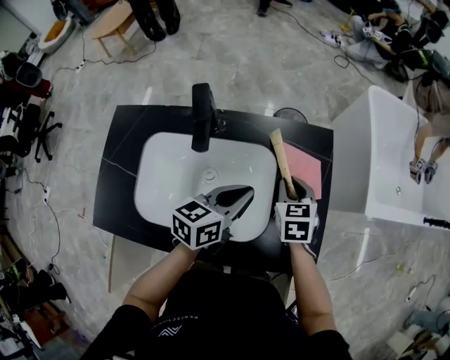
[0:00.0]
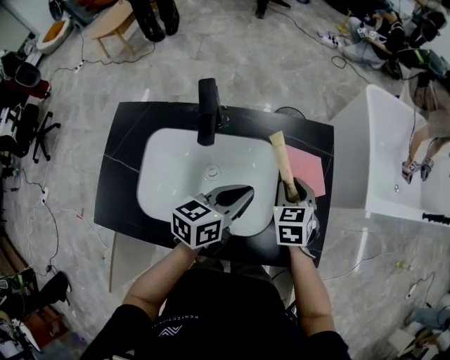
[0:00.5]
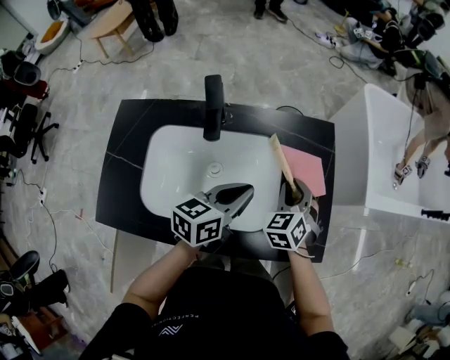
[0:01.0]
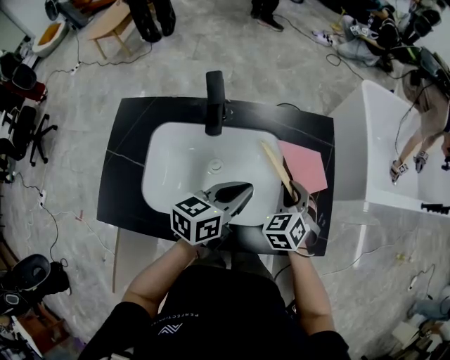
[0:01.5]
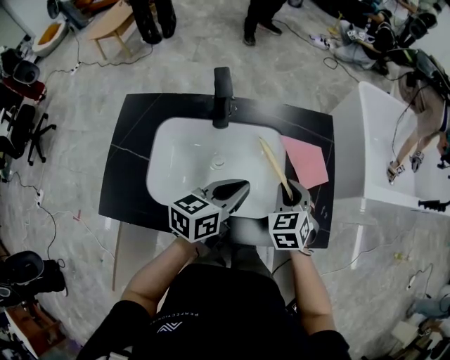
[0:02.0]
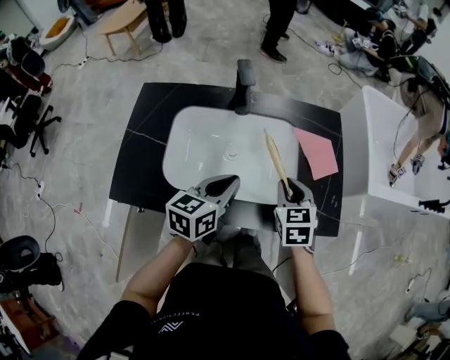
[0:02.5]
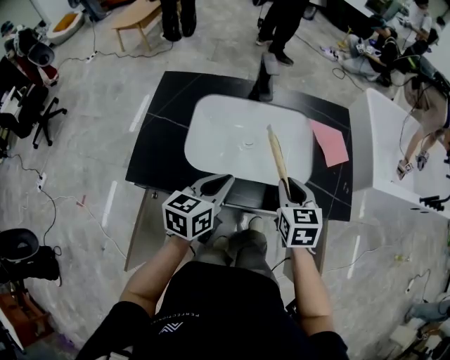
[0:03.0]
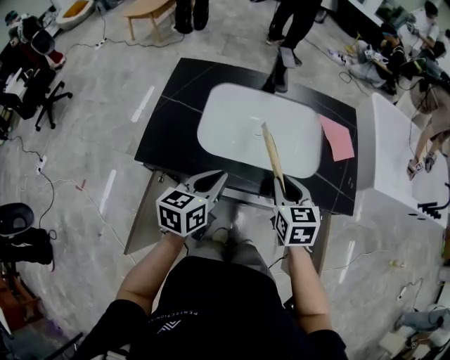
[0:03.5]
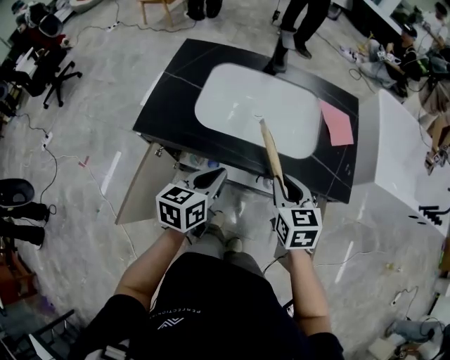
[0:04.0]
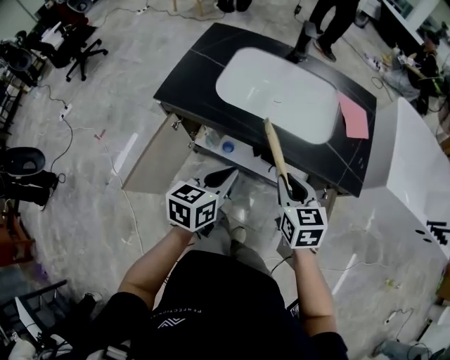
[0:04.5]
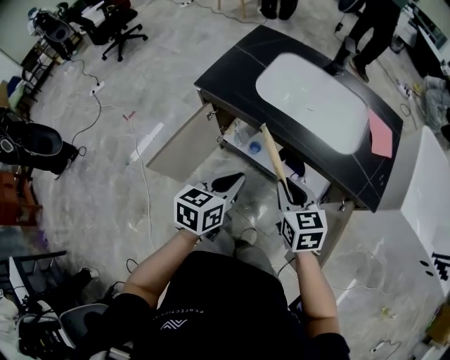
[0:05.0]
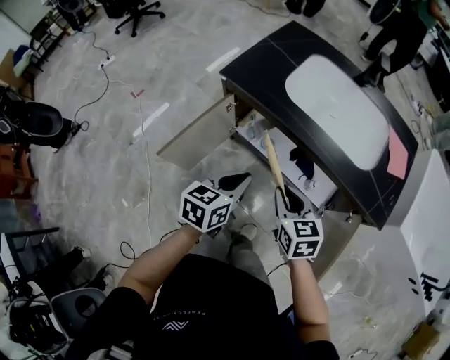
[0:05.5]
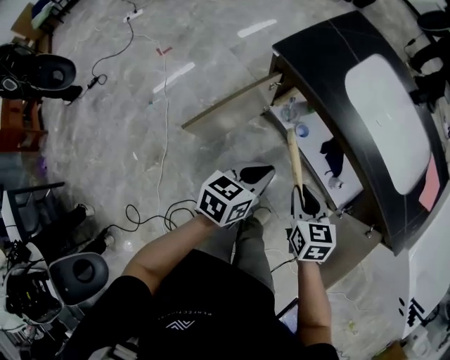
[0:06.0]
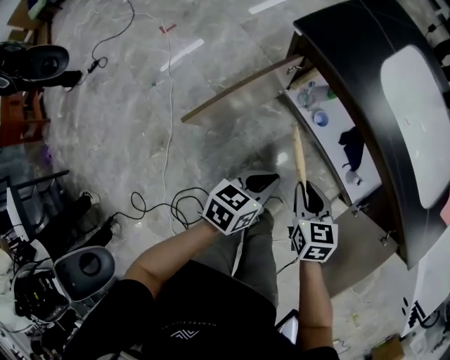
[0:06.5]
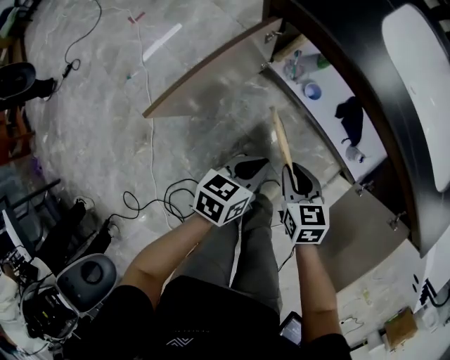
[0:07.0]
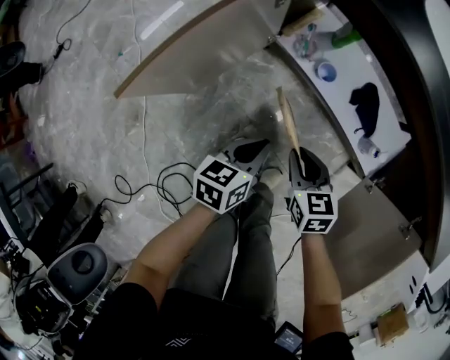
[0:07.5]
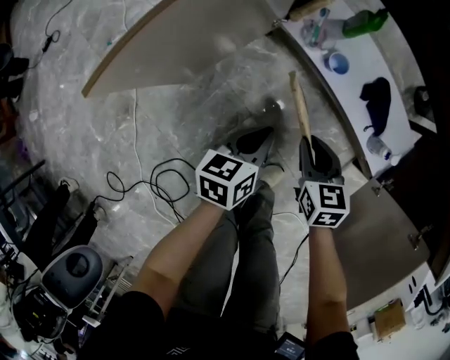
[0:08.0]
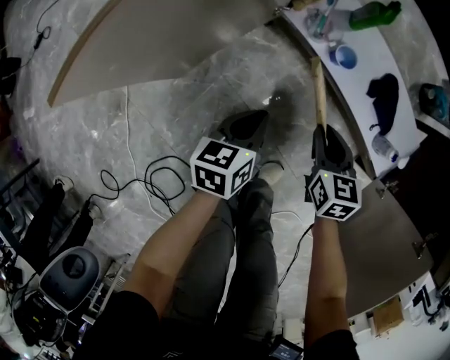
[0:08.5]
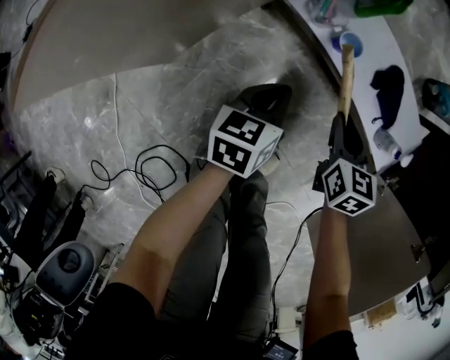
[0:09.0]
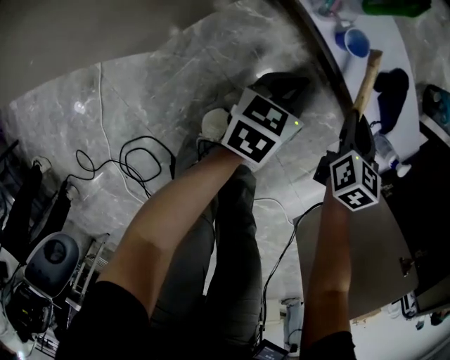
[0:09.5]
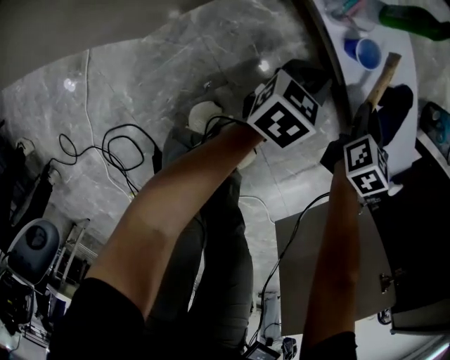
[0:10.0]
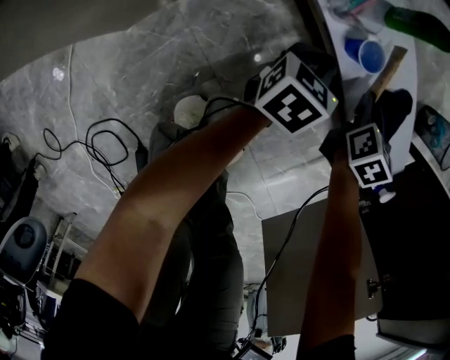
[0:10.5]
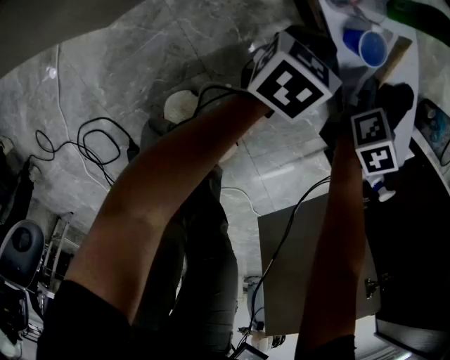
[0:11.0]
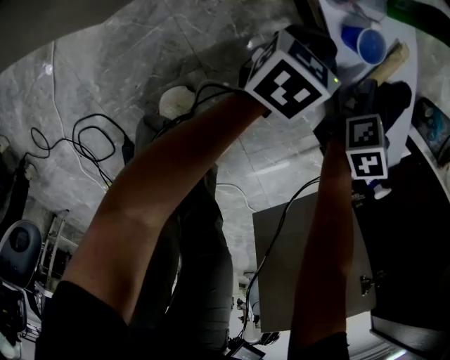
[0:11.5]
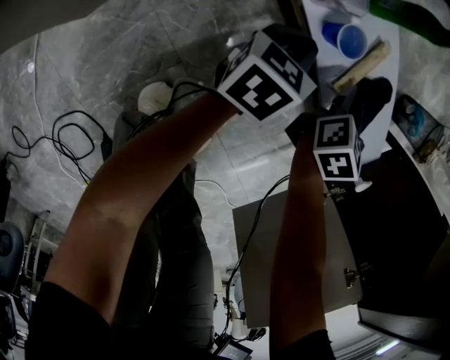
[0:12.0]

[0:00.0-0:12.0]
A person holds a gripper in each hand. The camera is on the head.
0:00.0 to 0:02.0: The two grippers go about 10 cm backward.
0:02.0 to 0:04.0: The right gripper moves backward, about 20 cm, and swivels approximately 30 degrees, while the left gripper heads backward and to the left, covering roughly 25 cm, and changes its angle by approximately 20 degrees.
0:04.0 to 0:06.0: The left gripper ends up about 20 cm from where it was. The right gripper changes place by some 25 cm, and rotates approximately 30 degrees.
0:06.0 to 0:08.0: Both grippers travel together downward, about 30 cm.
0:08.0 to 0:10.0: Both grippers move forward, downward and to the right, roughly 25 cm. The right gripper changes its angle by about 30 degrees.
0:10.0 to 0:12.0: The right gripper opens, then closes again, while the left gripper goes about 5 cm forward.

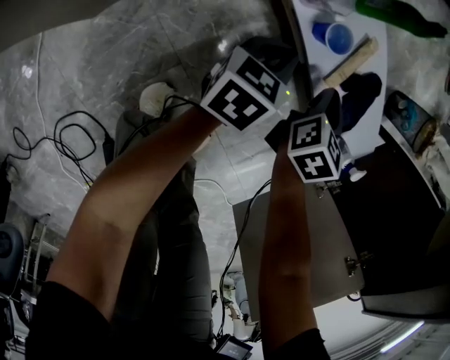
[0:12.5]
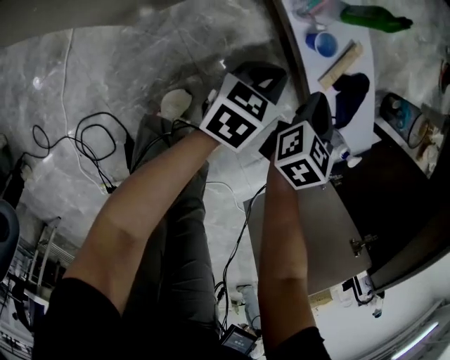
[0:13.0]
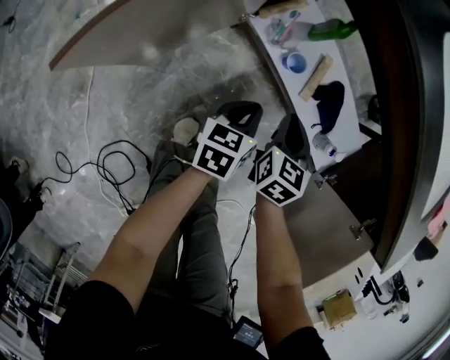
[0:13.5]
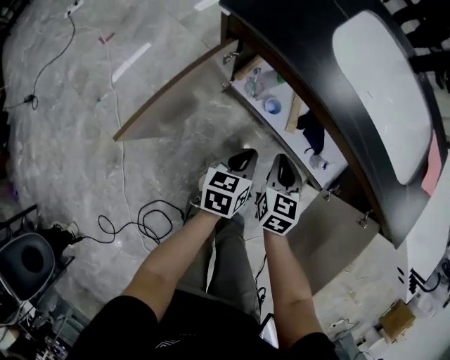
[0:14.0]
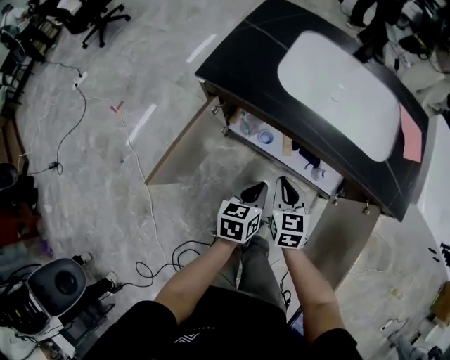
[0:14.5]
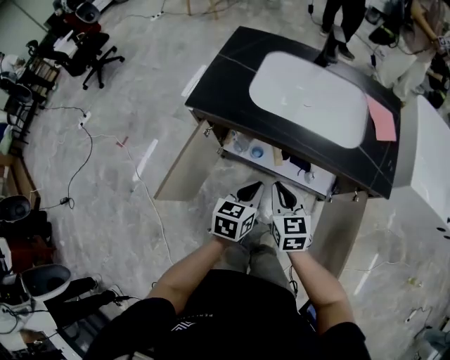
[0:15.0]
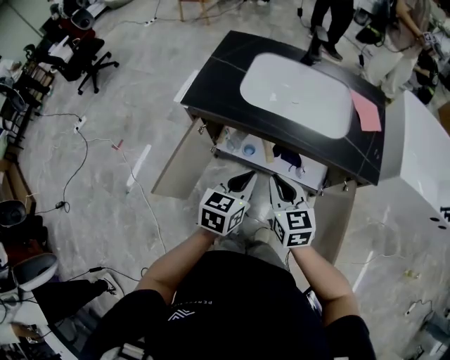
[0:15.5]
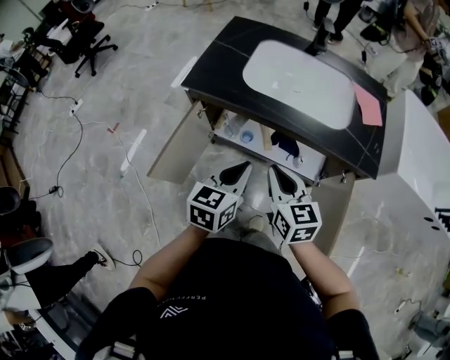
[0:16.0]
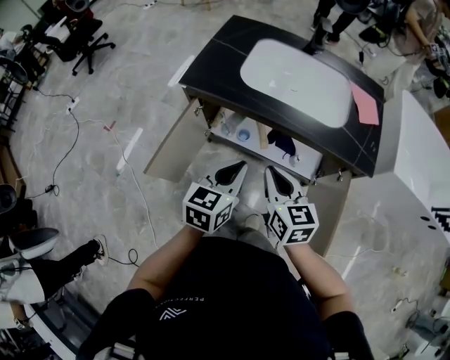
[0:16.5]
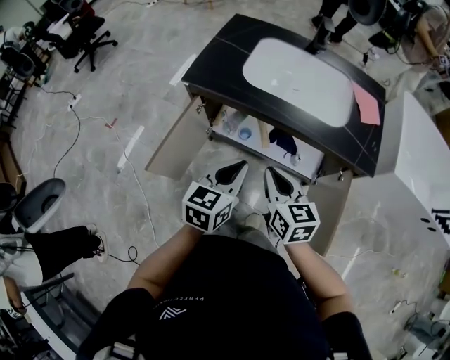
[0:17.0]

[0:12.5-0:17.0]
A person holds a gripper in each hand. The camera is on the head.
0:12.5 to 0:14.5: The grippers both shift upward by some 35 cm.
0:14.5 to 0:17.0: The right gripper is displaced upward and backward by some 20 cm. Meanwhile the left gripper goes about 20 cm upward, and swivels roughly 20 degrees.

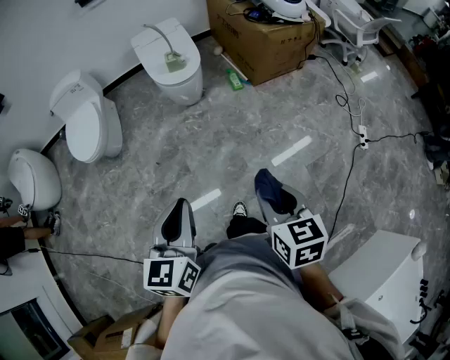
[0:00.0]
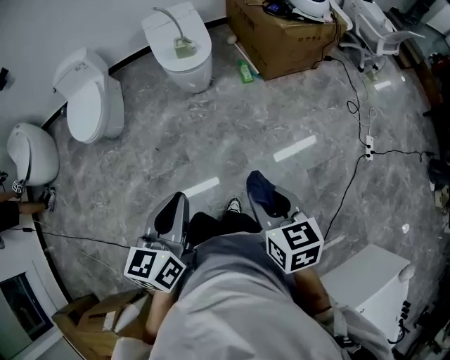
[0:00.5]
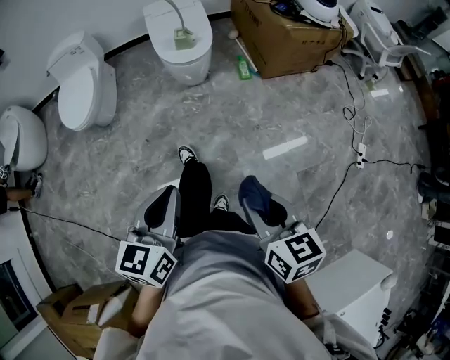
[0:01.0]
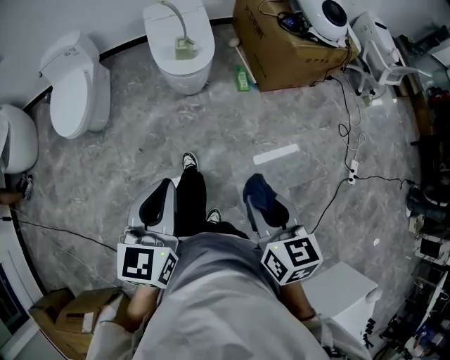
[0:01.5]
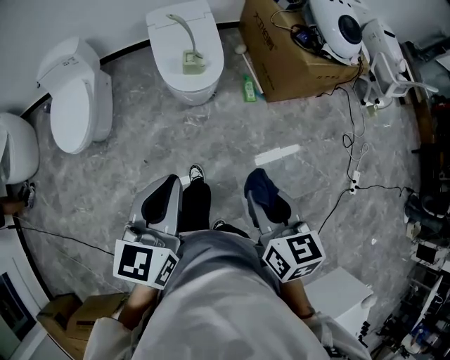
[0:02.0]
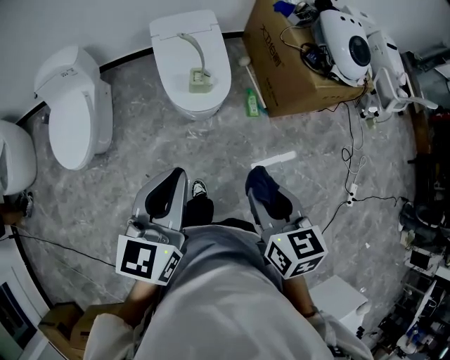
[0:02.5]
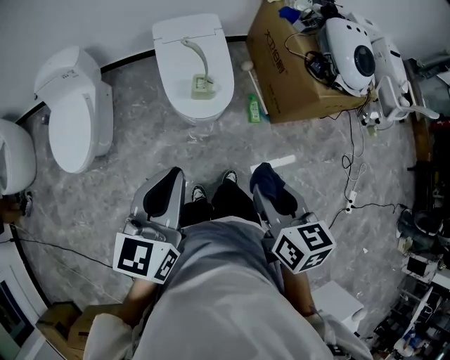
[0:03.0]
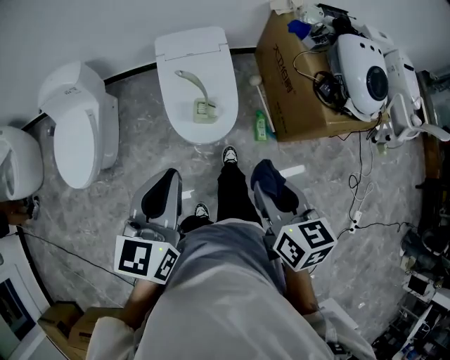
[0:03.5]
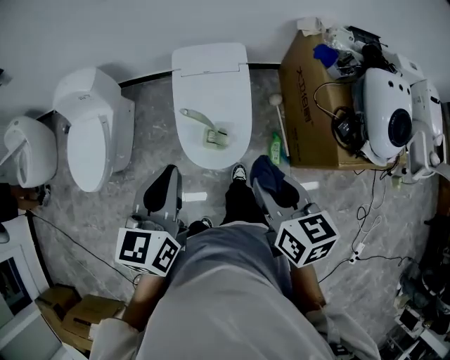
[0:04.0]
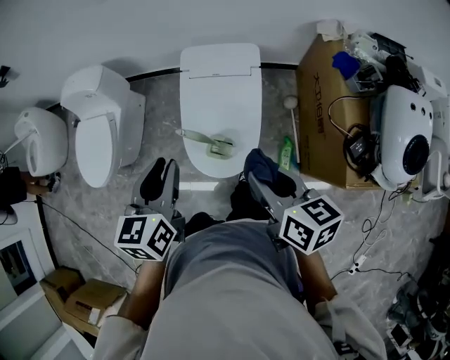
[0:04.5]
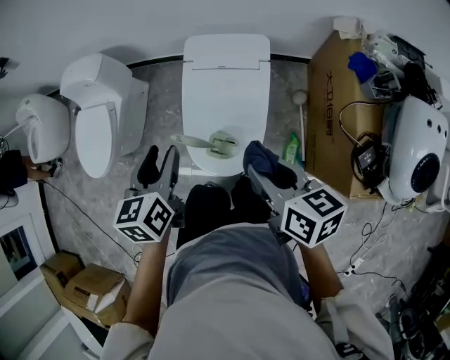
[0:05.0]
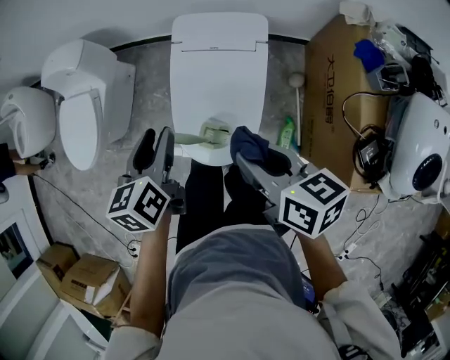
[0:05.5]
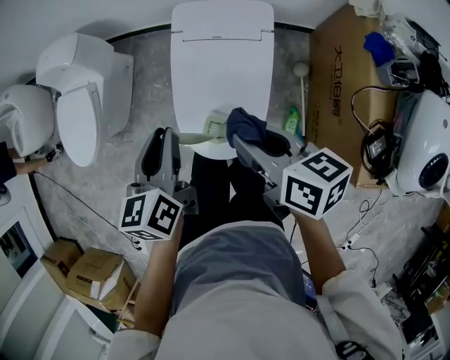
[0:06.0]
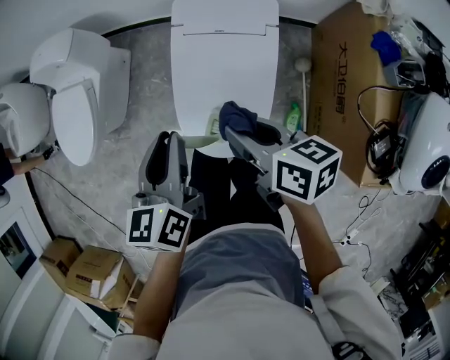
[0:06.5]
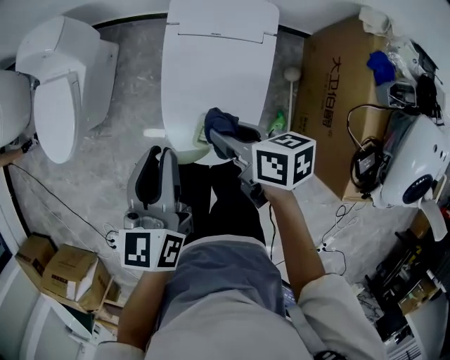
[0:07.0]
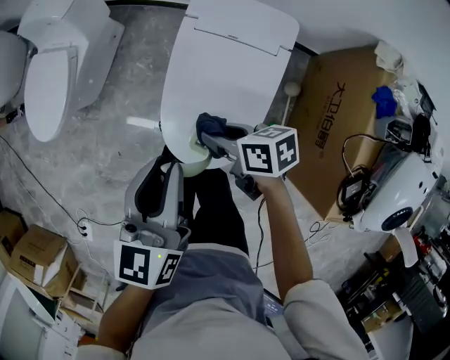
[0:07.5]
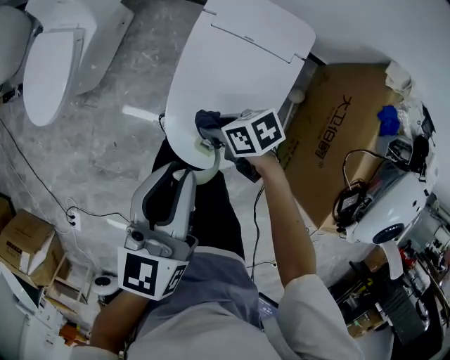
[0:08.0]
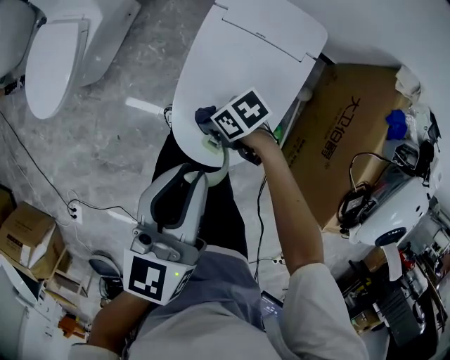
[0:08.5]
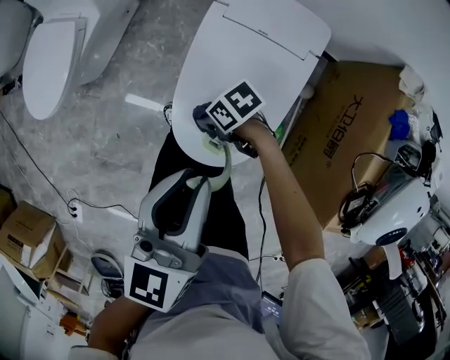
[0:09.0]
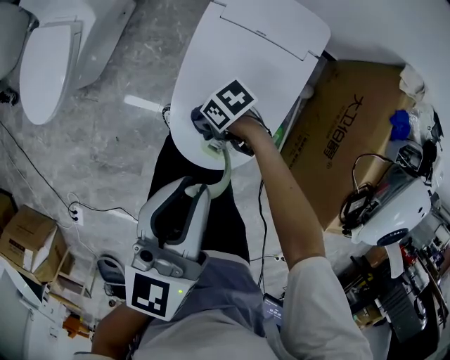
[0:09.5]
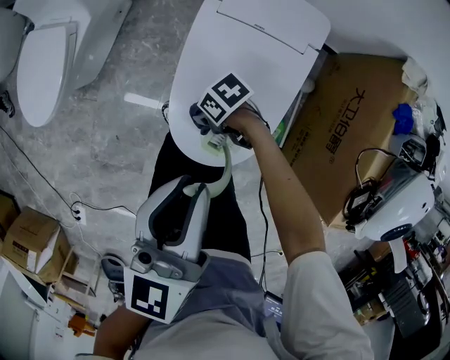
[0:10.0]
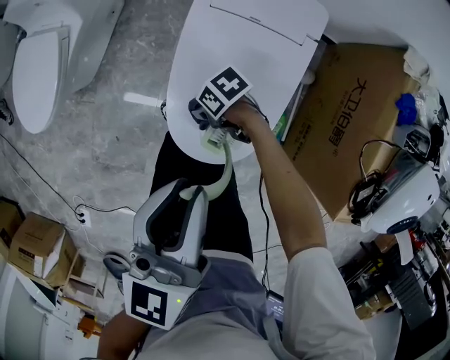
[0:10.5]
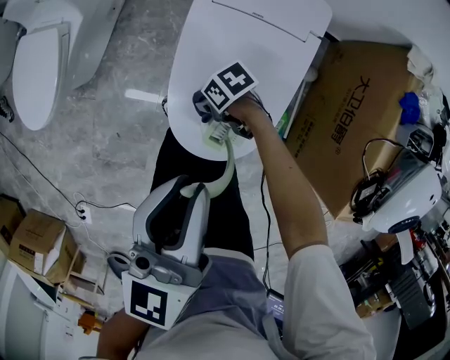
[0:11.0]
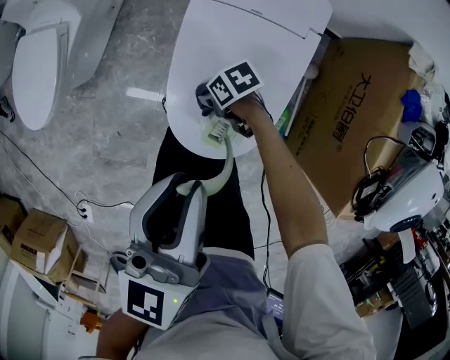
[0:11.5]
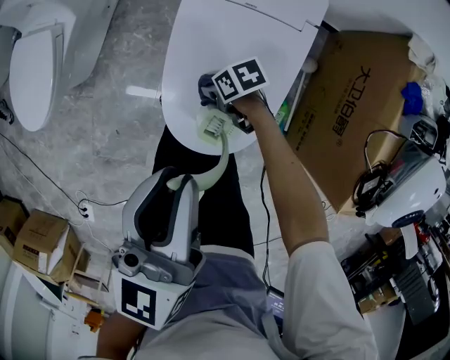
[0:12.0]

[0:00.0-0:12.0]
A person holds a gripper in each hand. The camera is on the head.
0:00.0 to 0:02.0: The left gripper changes place by approximately 35 cm.
0:02.0 to 0:04.0: The left gripper changes place by roughly 40 cm.
0:04.0 to 0:06.0: The left gripper moves some 25 cm, and rotates some 30 degrees.
